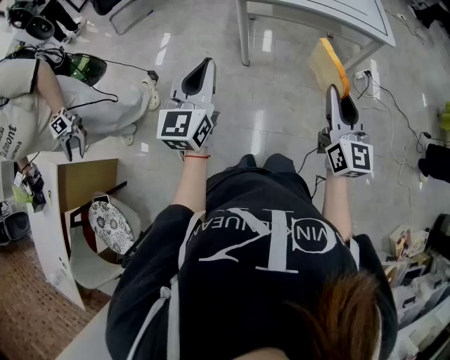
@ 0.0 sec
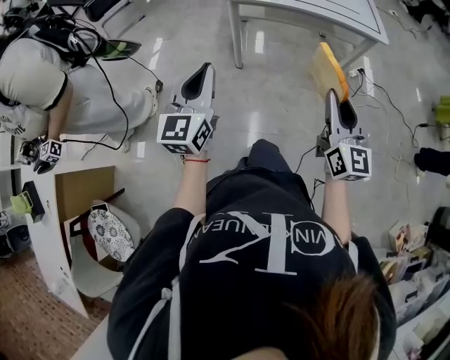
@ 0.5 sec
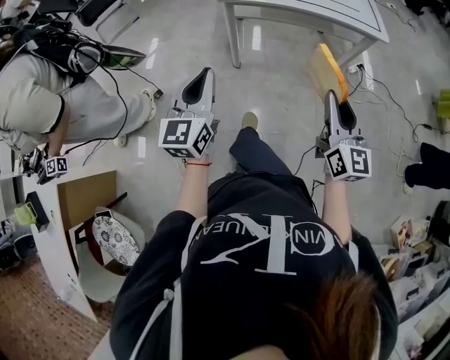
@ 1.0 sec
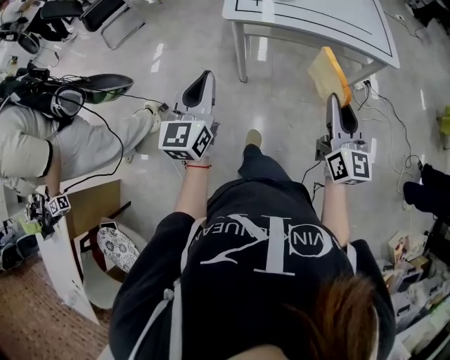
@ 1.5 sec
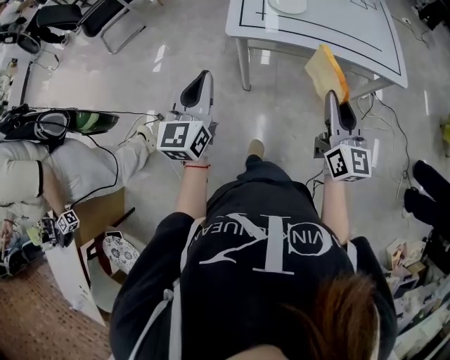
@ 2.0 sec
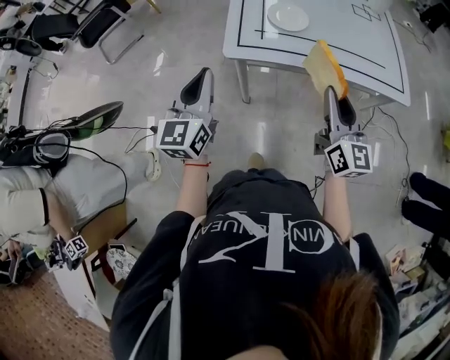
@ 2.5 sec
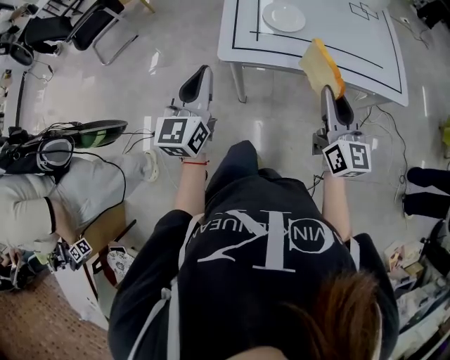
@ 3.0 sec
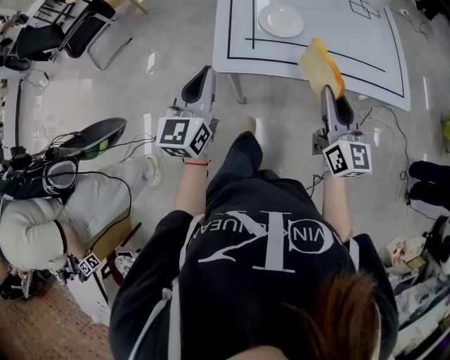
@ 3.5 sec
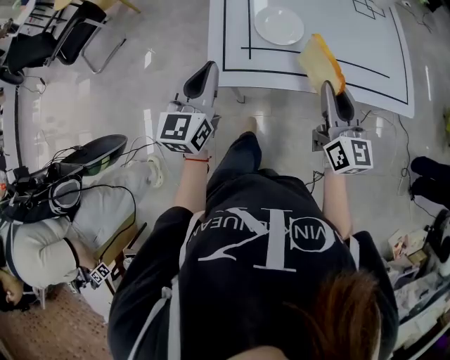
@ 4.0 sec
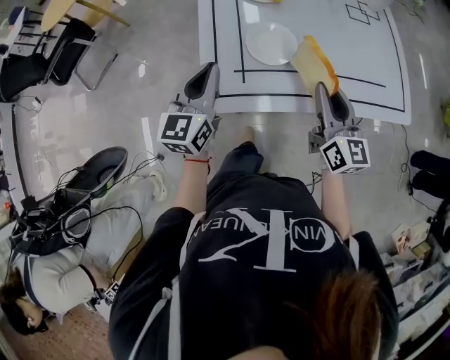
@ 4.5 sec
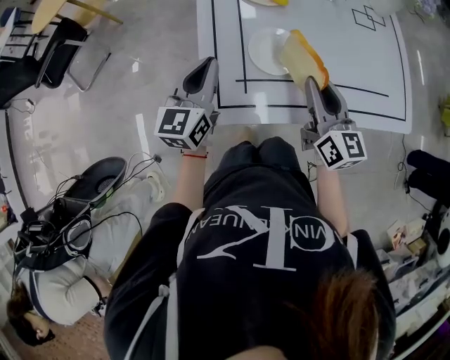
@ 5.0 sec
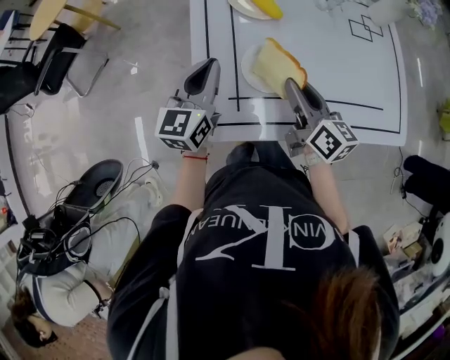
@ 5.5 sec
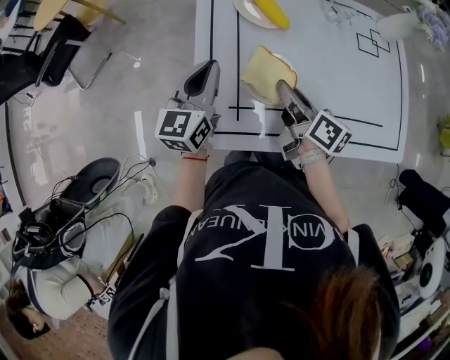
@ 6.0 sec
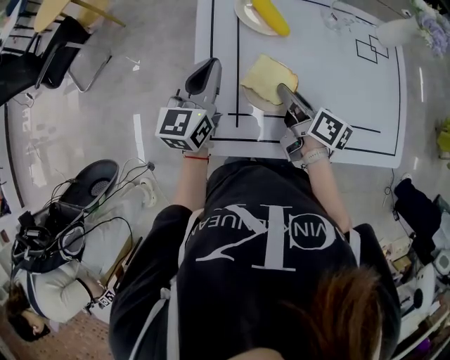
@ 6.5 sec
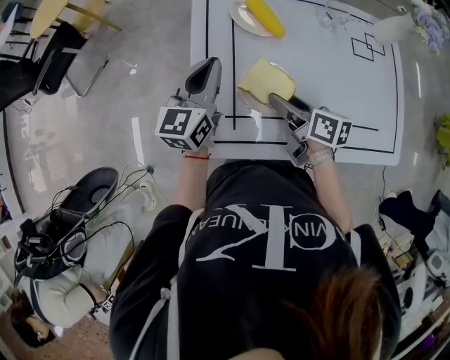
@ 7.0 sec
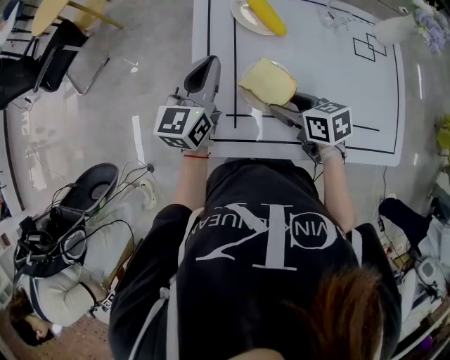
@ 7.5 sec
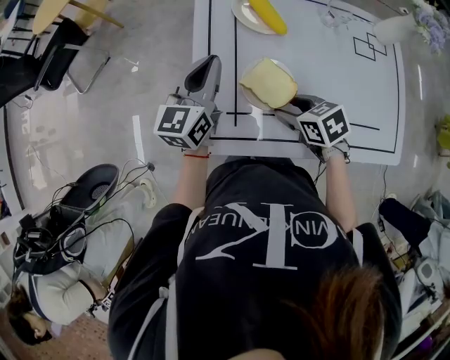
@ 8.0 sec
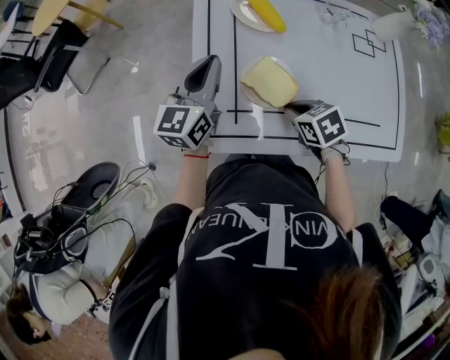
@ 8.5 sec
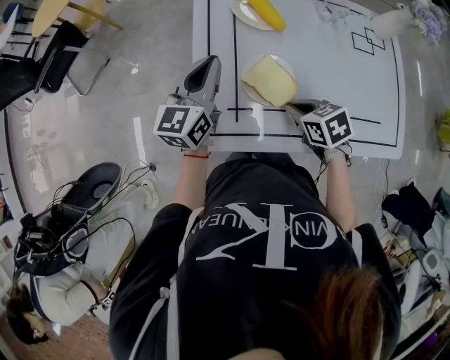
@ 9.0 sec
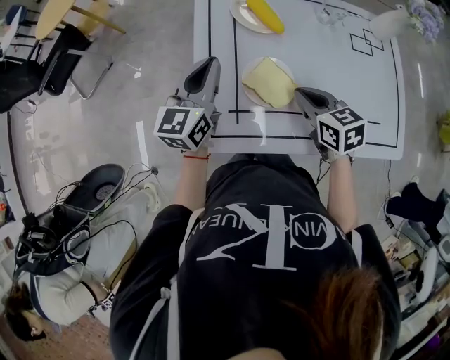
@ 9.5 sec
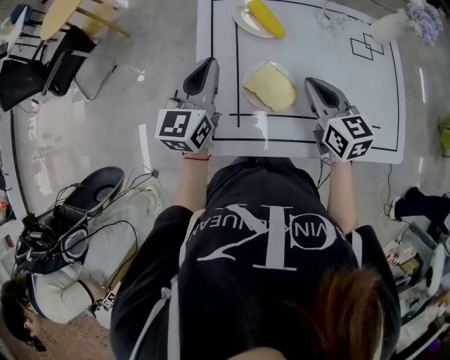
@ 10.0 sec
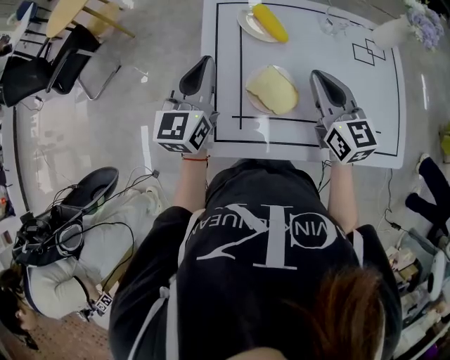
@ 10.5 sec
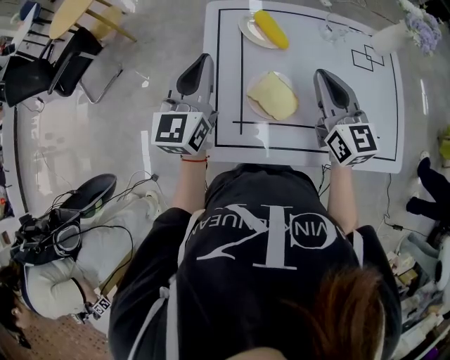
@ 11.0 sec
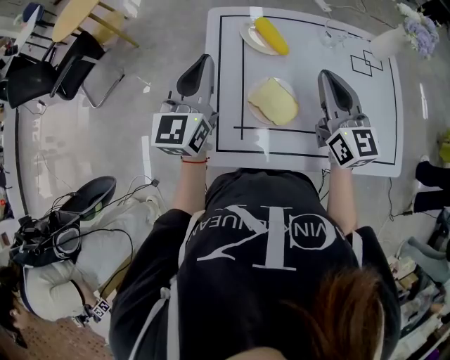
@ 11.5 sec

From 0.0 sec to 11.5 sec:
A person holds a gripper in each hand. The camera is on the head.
From 0.0 sec to 2.0 sec: The two grippers go some 20 cm forward.
From 2.0 sec to 4.0 sec: The grippers both shift forward by approximately 20 cm.
From 4.0 sec to 6.0 sec: The left gripper goes roughly 20 cm forward. The right gripper is displaced forward and downward by some 20 cm, and rolls clockwise, seen from behind, by some 40 degrees.
From 6.0 sec to 7.5 sec: The right gripper changes its angle by about 50 degrees, and opens its fingers.
From 7.5 sec to 9.5 sec: The right gripper moves approximately 5 cm, and closes its fingers.
From 9.5 sec to 11.5 sec: The left gripper moves upward, some 10 cm. Meanwhile the right gripper moves upward, about 15 cm, and points its fingers some 40 degrees further upward.

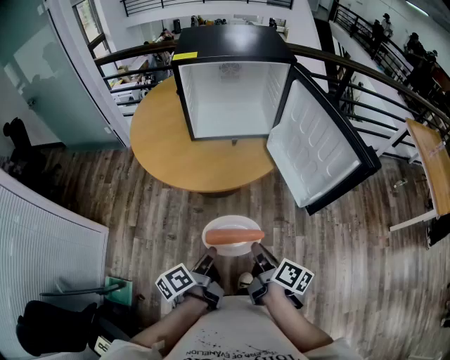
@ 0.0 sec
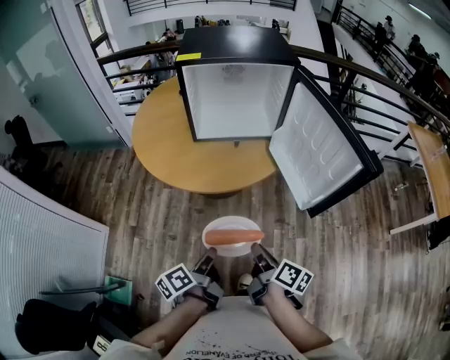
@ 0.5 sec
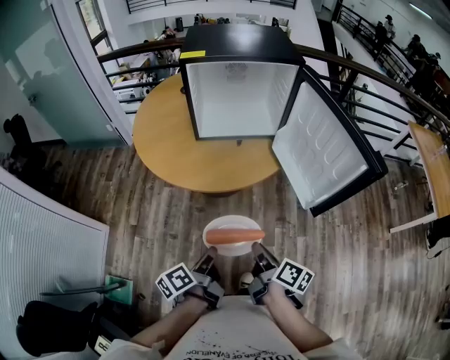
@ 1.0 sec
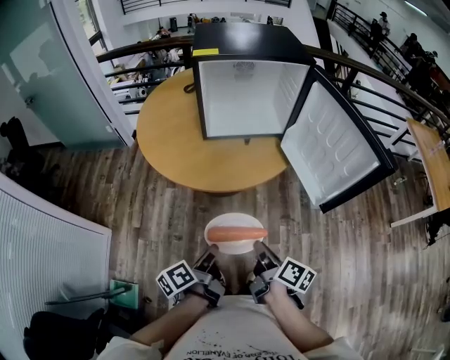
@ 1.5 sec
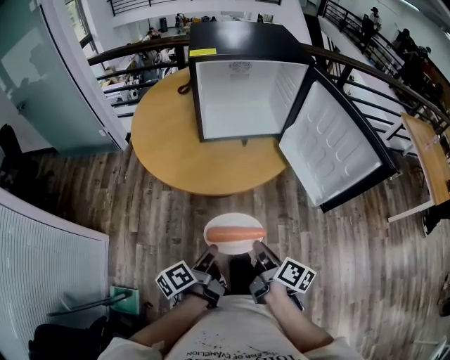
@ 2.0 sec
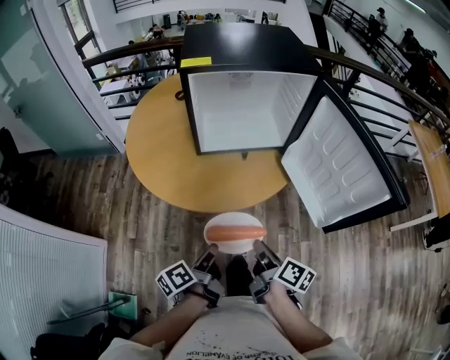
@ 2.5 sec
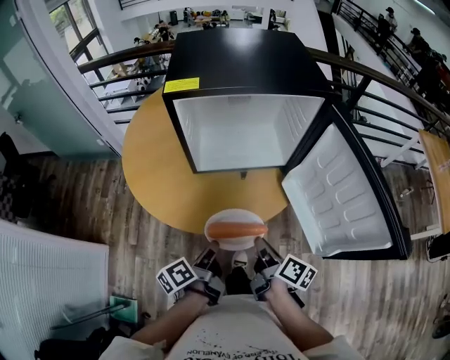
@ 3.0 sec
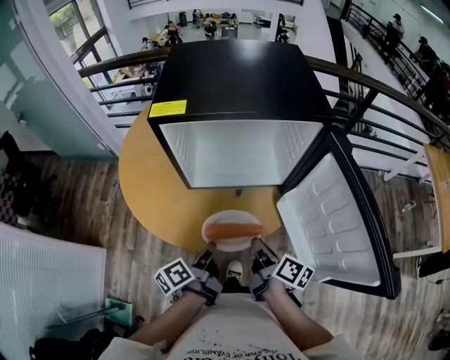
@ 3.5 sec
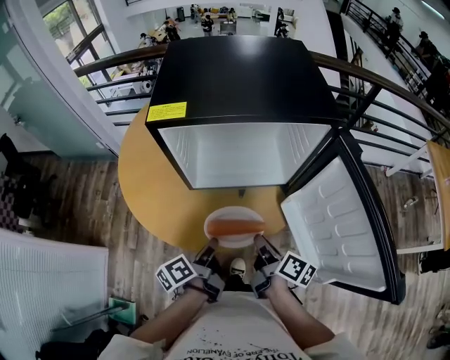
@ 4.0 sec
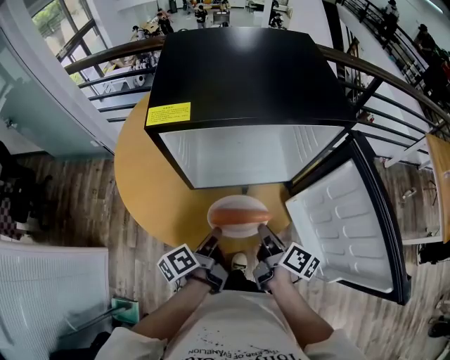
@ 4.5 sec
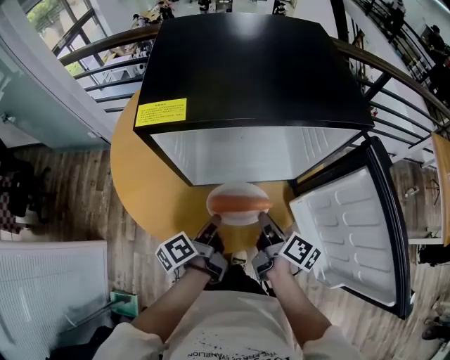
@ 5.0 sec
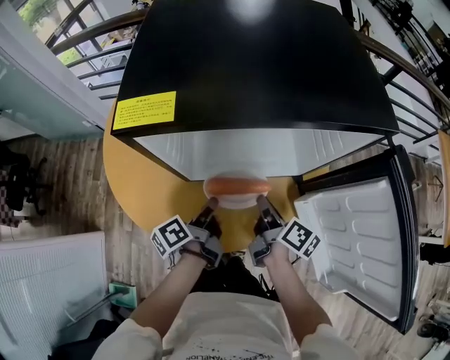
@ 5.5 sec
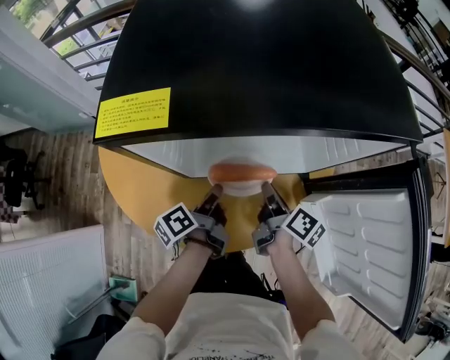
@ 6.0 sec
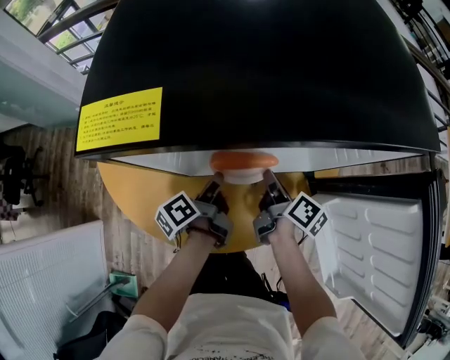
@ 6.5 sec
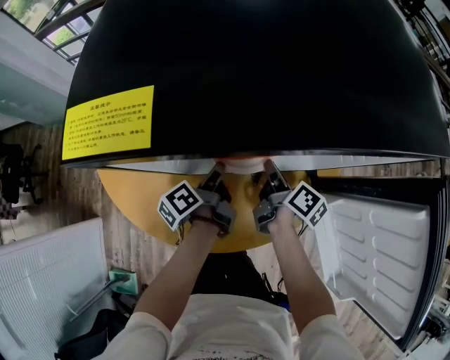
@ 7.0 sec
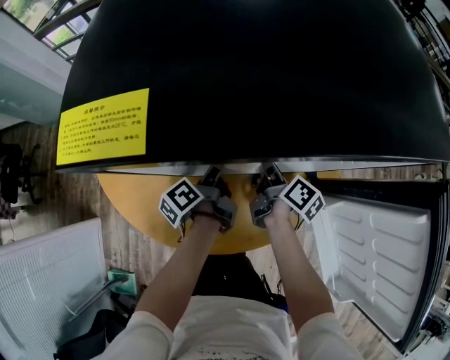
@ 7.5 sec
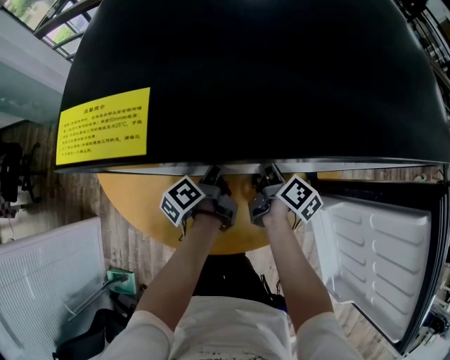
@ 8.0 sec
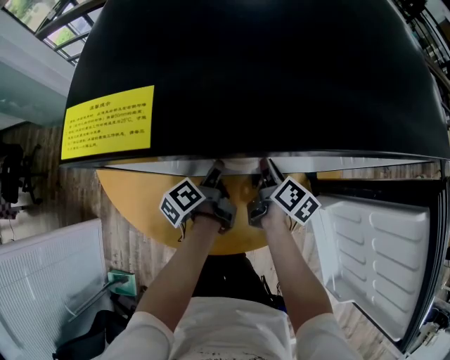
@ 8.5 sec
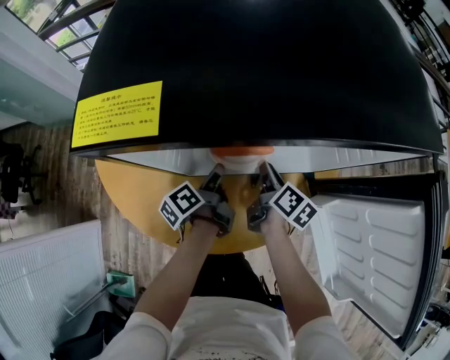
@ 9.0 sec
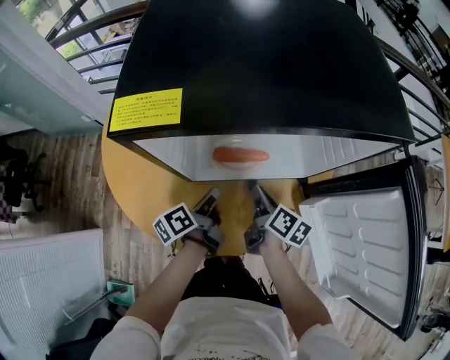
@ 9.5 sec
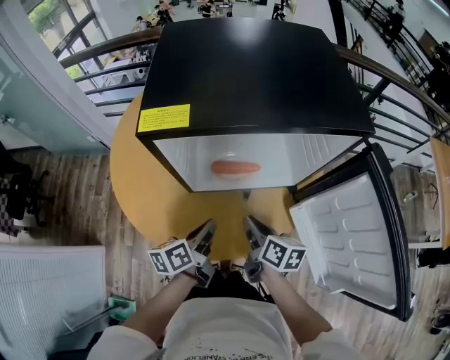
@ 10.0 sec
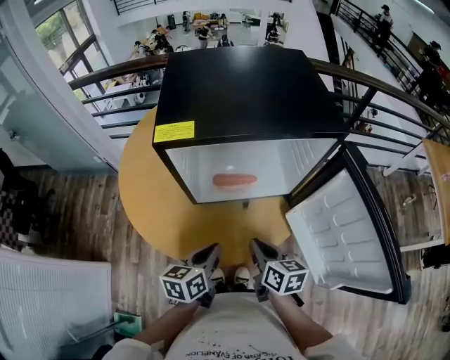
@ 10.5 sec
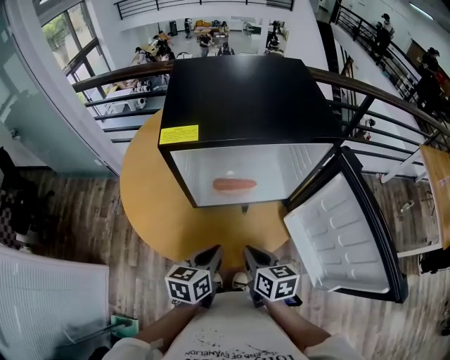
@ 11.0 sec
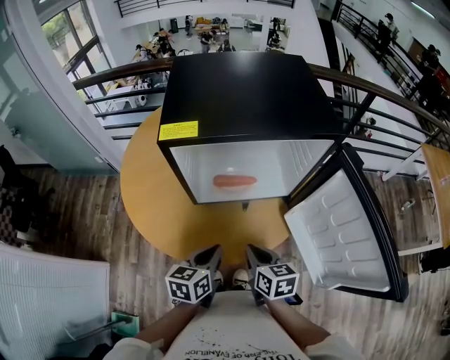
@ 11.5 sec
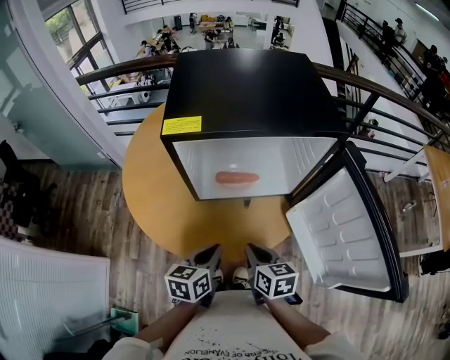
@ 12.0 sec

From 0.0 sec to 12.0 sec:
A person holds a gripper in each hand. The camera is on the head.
From 0.0 sec to 2.0 sec: The right gripper changes place by about 10 cm.
From 2.0 sec to 4.0 sec: The right gripper shifts by some 30 cm.
From 4.0 sec to 6.0 sec: The right gripper ends up some 20 cm from where it was.
From 6.0 sec to 8.0 sec: The right gripper ends up approximately 10 cm from where it was.
From 8.0 sec to 10.0 sec: The right gripper ends up approximately 20 cm from where it was, and turns by roughly 20 degrees.
From 10.0 sec to 12.0 sec: The right gripper shifts by about 10 cm, and rotates approximately 20 degrees.

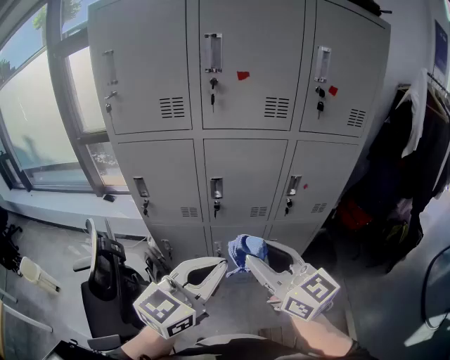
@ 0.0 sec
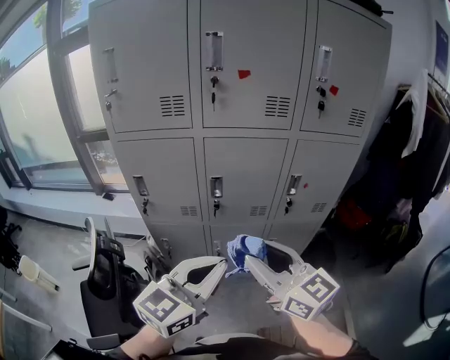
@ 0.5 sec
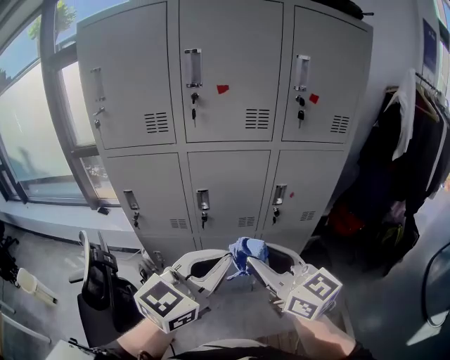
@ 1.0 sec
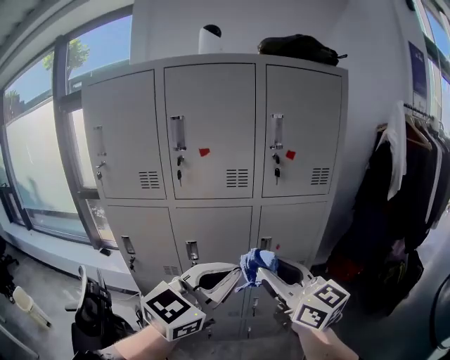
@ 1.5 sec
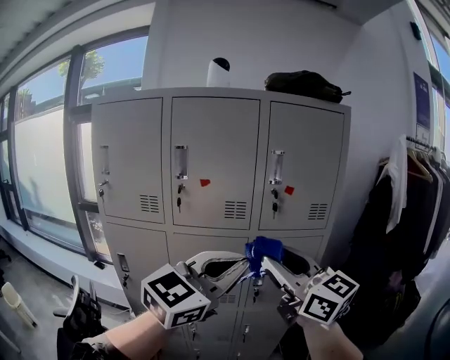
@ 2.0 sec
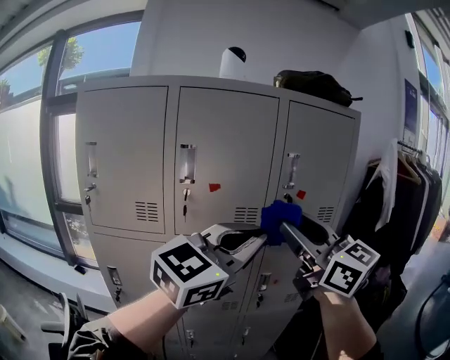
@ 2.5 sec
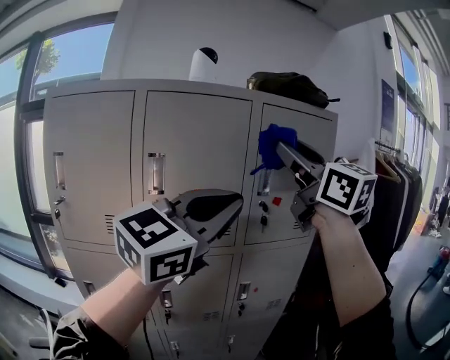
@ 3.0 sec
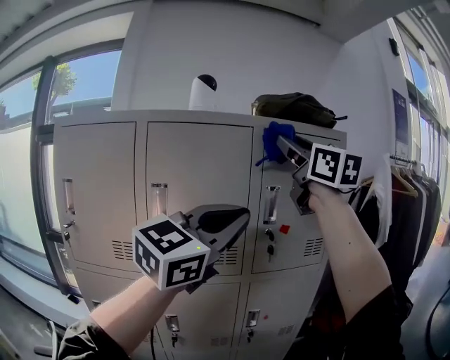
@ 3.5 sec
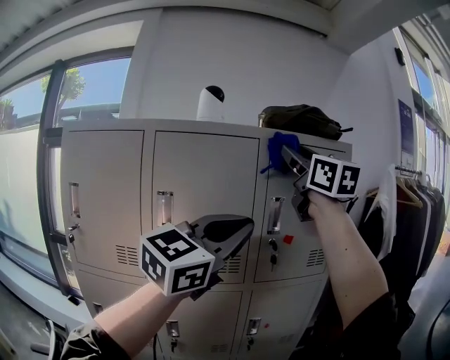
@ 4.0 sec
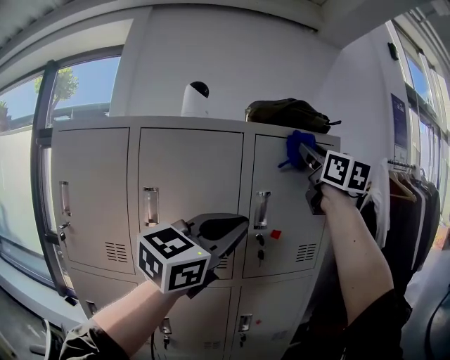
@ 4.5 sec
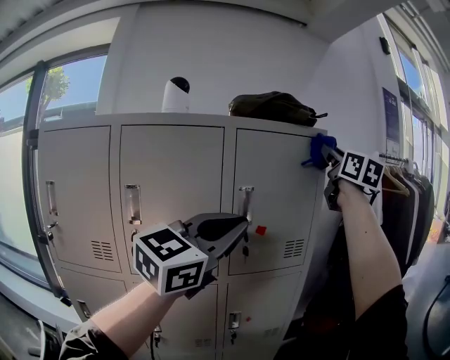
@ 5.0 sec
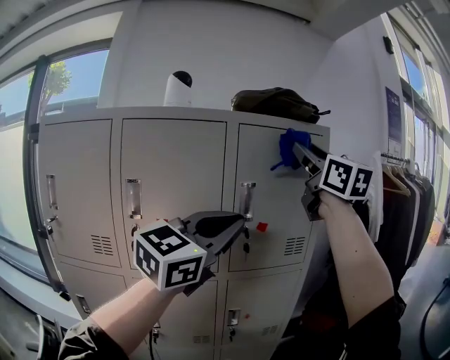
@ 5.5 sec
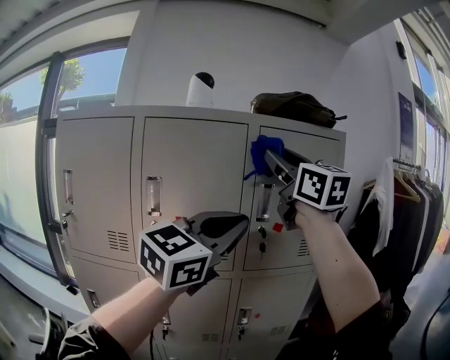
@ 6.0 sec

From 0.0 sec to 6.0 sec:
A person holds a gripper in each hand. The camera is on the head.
From 0.0 sec to 2.0 sec: Both grippers travel together upward and to the right, about 25 cm. The left gripper changes its angle by about 20 degrees.
From 2.0 sec to 4.0 sec: The right gripper shifts roughly 40 cm upward and forward, and swivels some 30 degrees; the left gripper goes about 20 cm upward and forward.
From 4.0 sec to 6.0 sec: The right gripper reaches approximately 20 cm to the right, then returns.